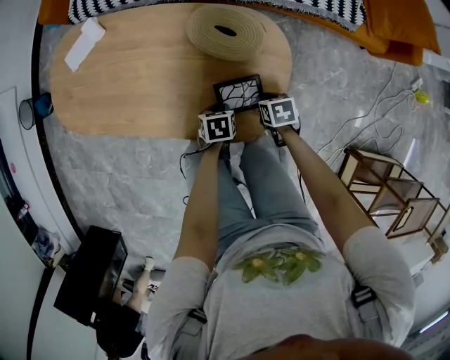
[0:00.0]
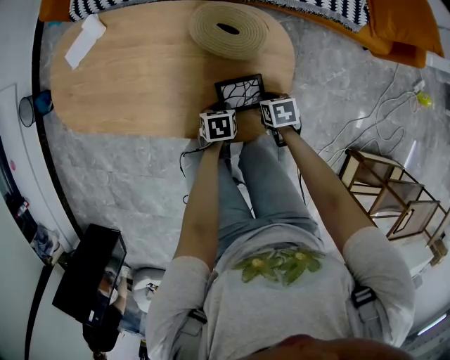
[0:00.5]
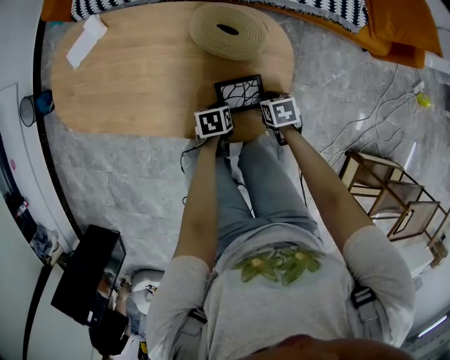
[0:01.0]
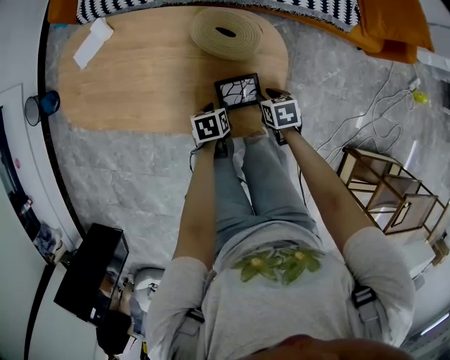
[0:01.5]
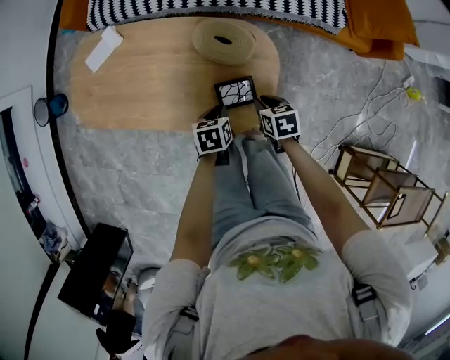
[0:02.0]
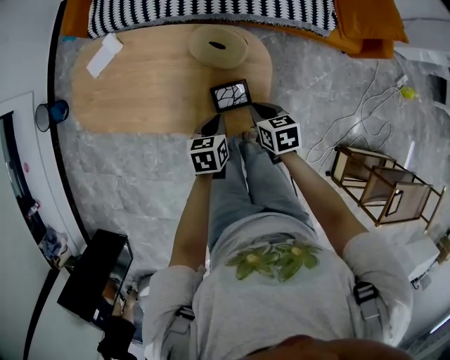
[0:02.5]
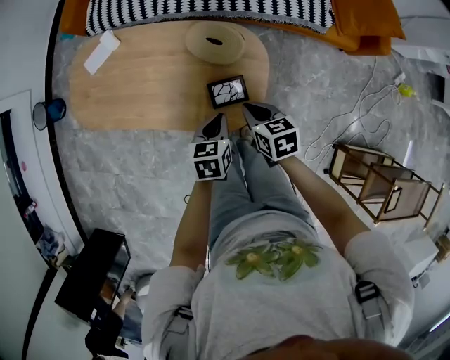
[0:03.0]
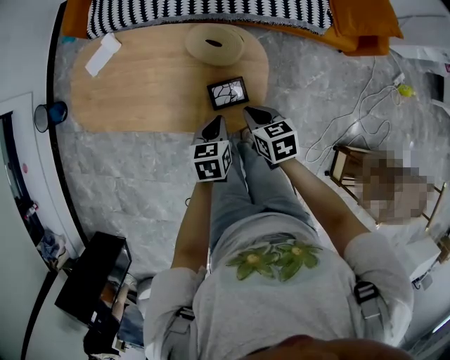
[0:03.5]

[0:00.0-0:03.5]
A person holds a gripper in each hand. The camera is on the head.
0:00.0 to 0:02.0: The two grippers go about 15 cm upward.
0:02.0 to 0:03.5: The grippers both shift upward by approximately 10 cm.

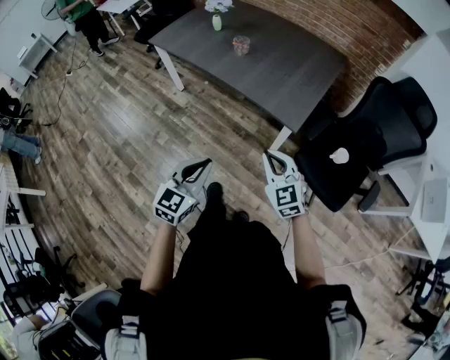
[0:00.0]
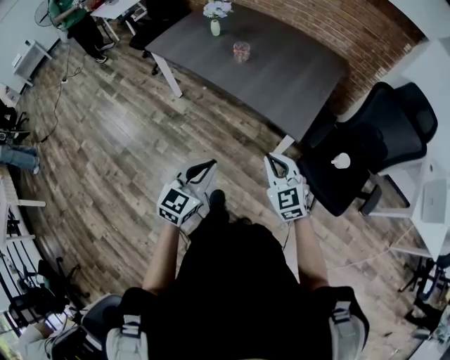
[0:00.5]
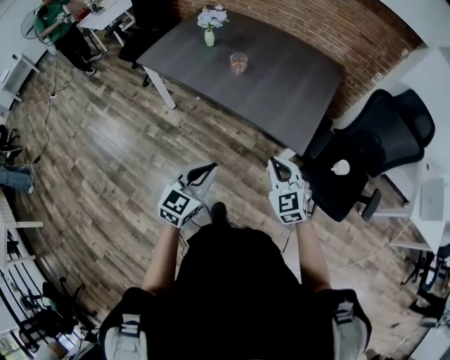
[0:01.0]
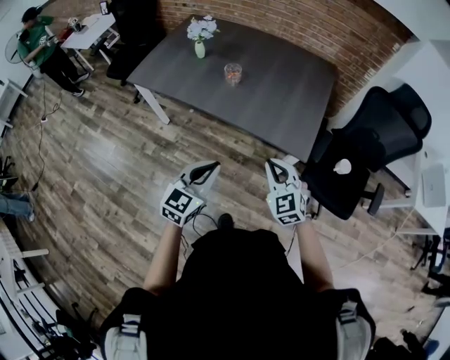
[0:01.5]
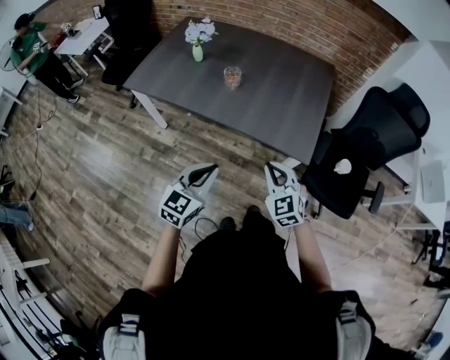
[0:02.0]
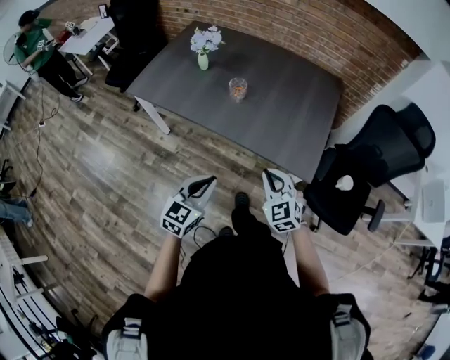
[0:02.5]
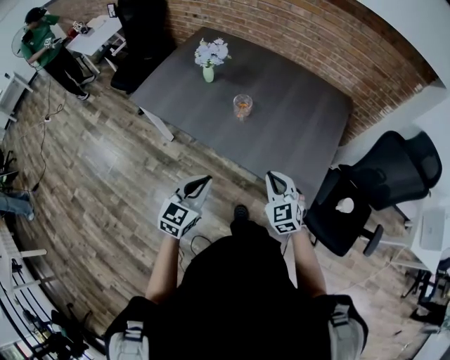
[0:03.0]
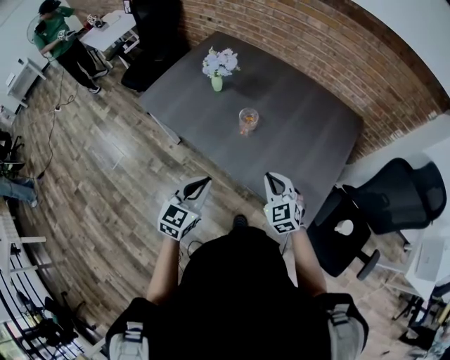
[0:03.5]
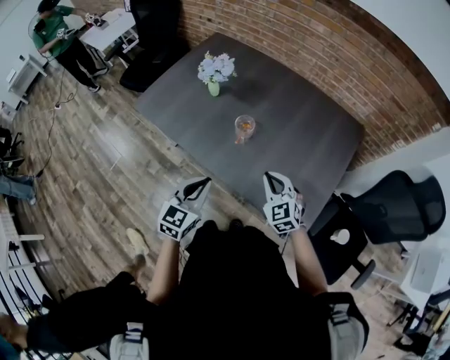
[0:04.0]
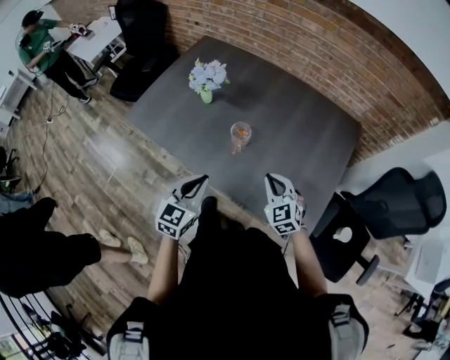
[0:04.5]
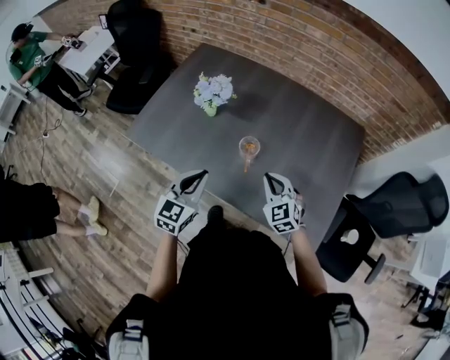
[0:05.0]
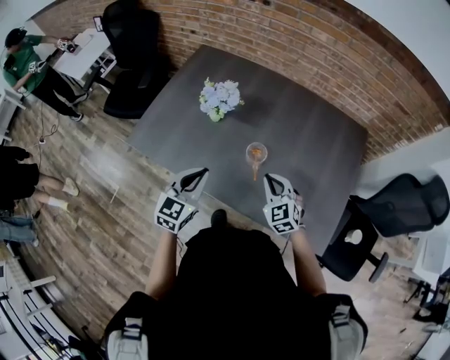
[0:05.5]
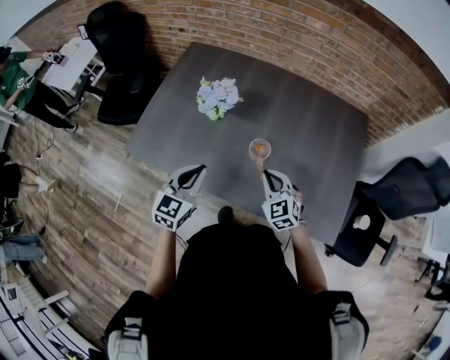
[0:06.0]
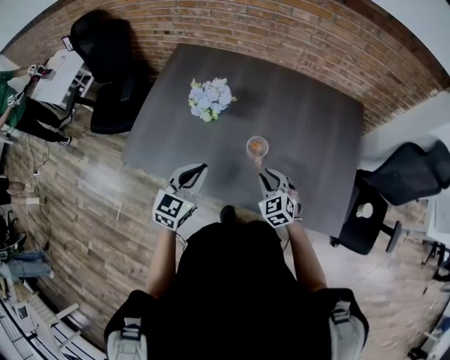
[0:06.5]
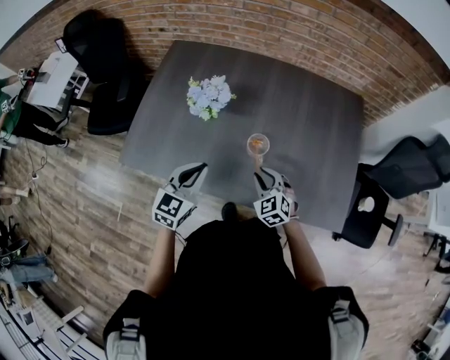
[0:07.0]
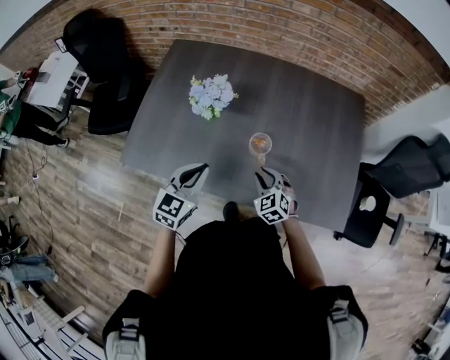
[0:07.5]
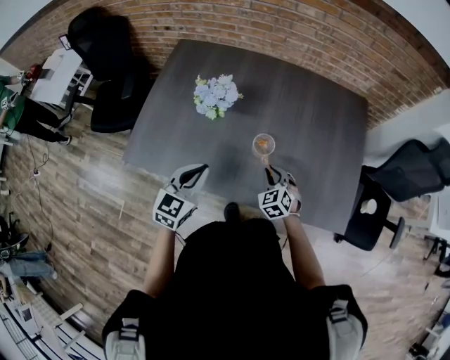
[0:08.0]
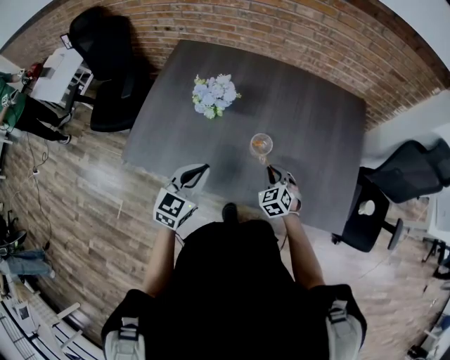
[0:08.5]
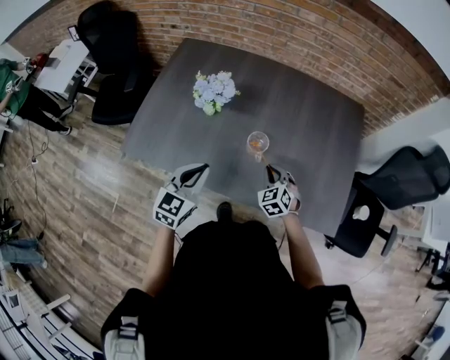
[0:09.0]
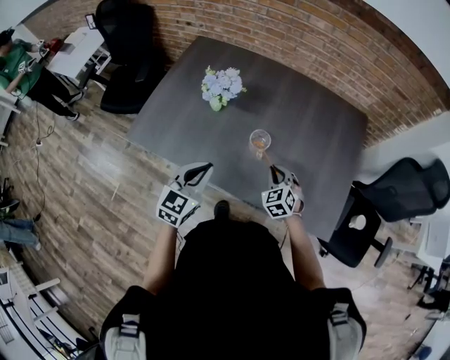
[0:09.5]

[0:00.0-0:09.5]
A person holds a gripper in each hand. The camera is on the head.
0:00.0 to 0:02.0: Both grippers travel together forward and to the left, some 25 cm.
0:02.0 to 0:04.0: The grippers both shift forward by roughly 25 cm.
0:04.0 to 0:05.5: The grippers both shift forward and to the left by some 20 cm.
0:05.5 to 0:07.5: The right gripper moves downward and to the left, about 10 cm, and opens up; the left gripper changes place by about 5 cm.
0:07.5 to 0:09.5: The right gripper goes approximately 5 cm to the right. The left gripper is displaced backward by some 5 cm.

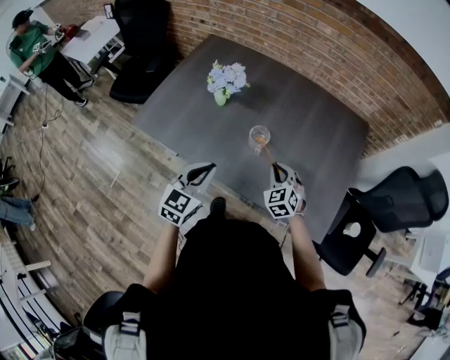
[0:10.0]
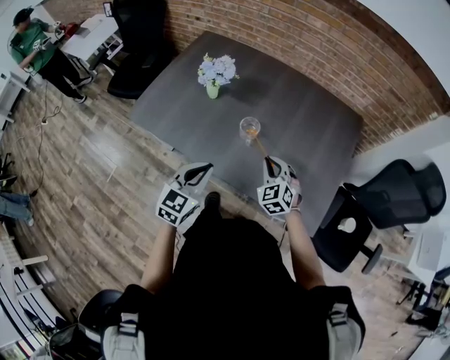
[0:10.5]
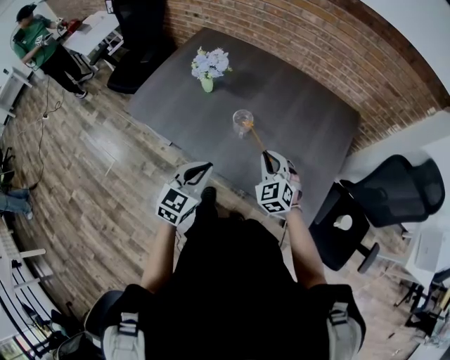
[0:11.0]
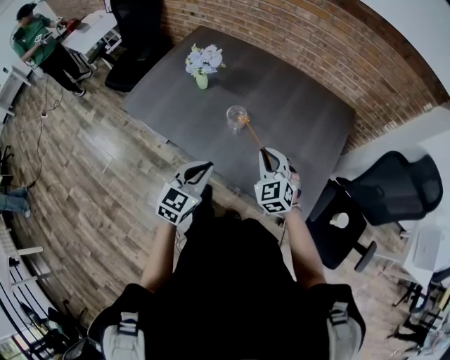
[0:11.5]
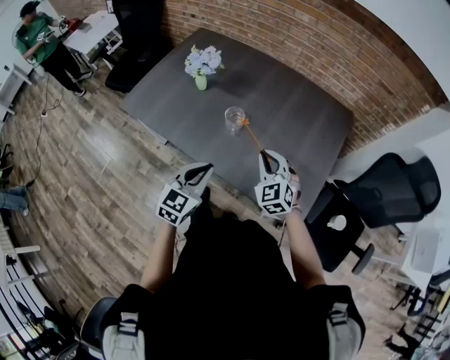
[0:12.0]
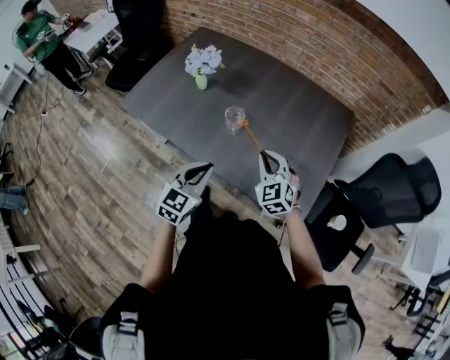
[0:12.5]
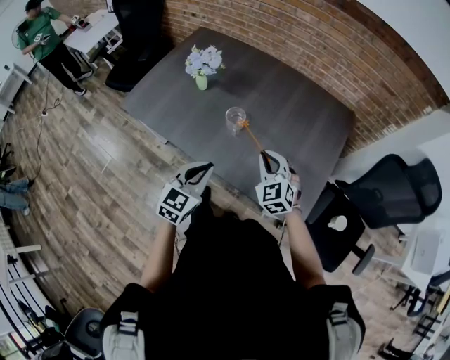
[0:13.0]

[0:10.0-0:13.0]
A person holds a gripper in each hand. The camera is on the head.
0:10.0 to 0:11.5: The left gripper heads to the right and backward, covering roughly 15 cm; the right gripper heads upward, to the right and backward, covering about 10 cm.
0:11.5 to 0:13.0: Both grippers stay about where they are.

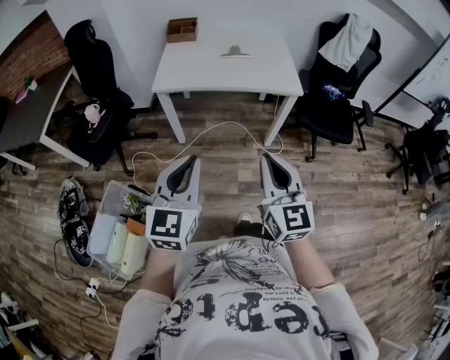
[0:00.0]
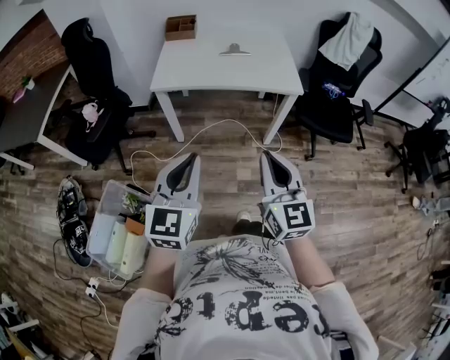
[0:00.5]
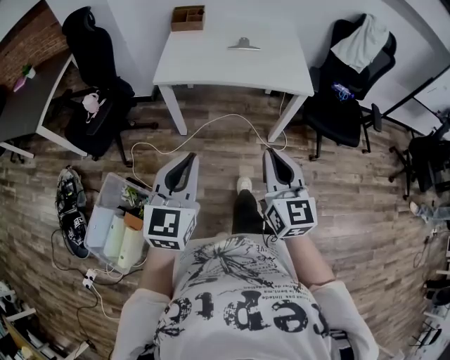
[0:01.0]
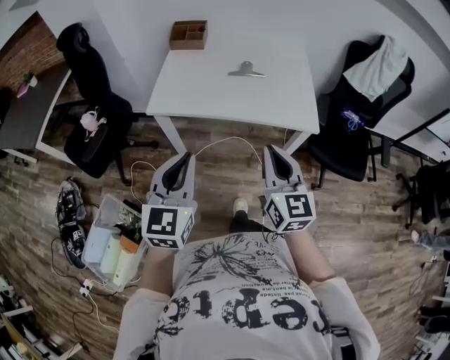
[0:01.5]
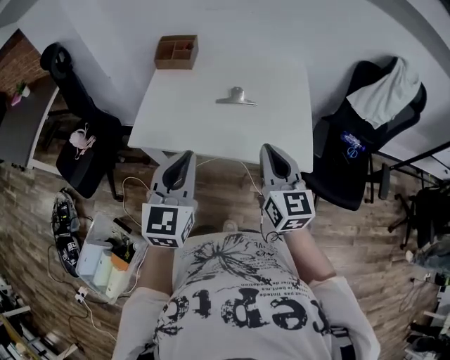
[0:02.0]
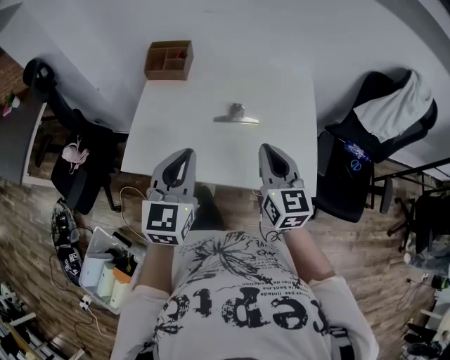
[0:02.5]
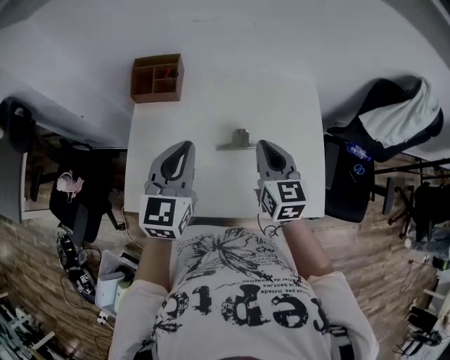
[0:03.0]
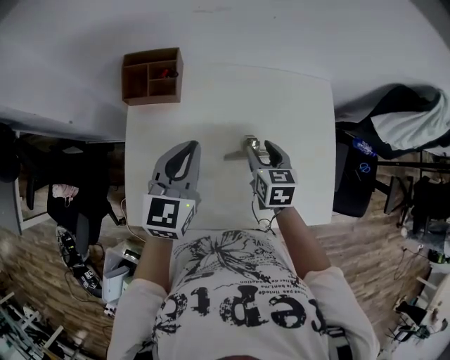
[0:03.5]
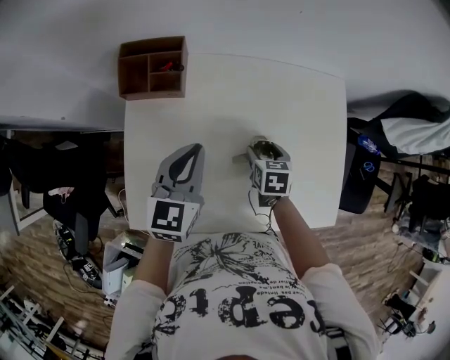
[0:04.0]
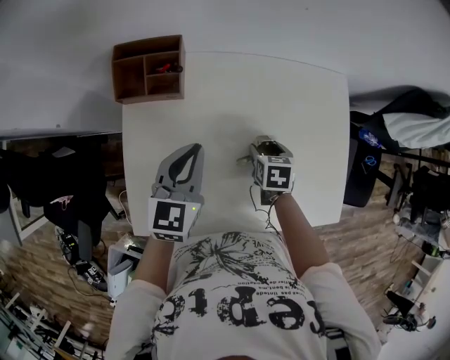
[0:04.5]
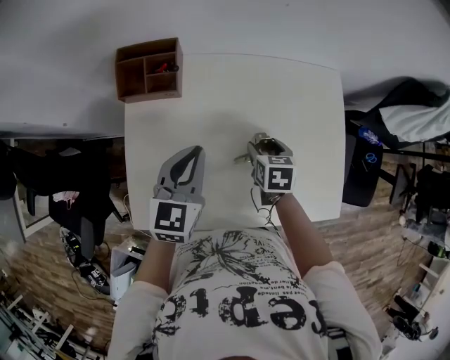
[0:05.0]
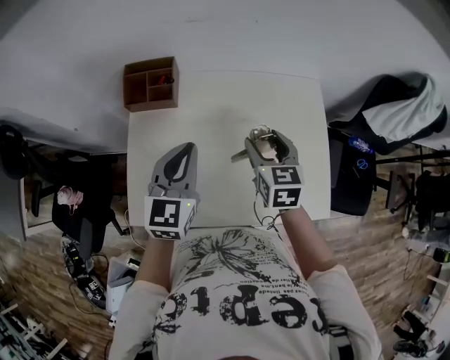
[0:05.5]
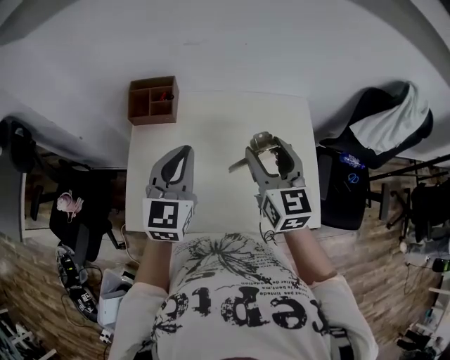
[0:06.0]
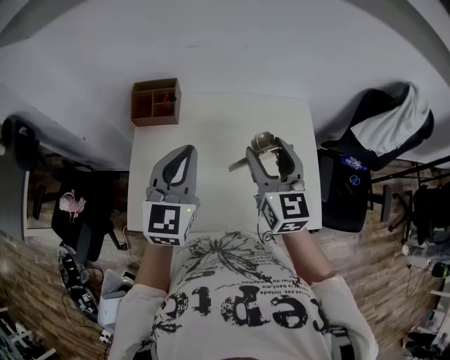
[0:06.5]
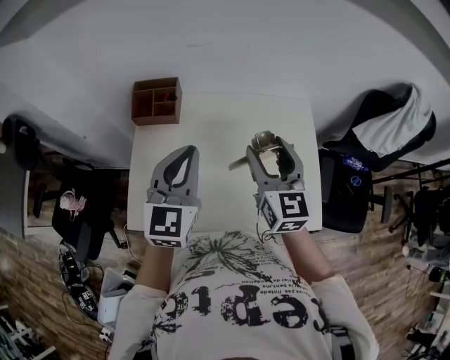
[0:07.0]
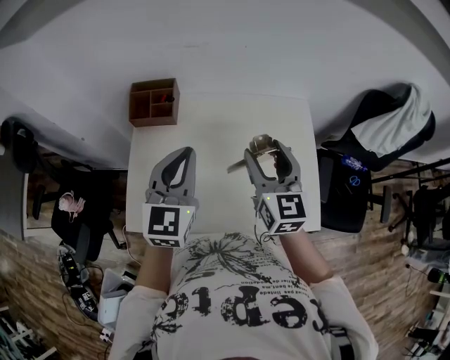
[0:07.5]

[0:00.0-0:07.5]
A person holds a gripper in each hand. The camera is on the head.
0:00.0 to 0:02.0: The pair of grippers is taken forward, about 40 cm.
0:02.0 to 0:04.0: The left gripper is displaced forward by approximately 40 cm, and rotates about 20 degrees; the right gripper goes approximately 50 cm forward and downward, tips its fingers downward by some 50 degrees, and opens up.
0:04.0 to 0:05.5: The right gripper goes roughly 20 cm upward, and changes its angle by approximately 30 degrees; the left gripper heads upward and backward, covering roughly 10 cm.
0:05.5 to 0:07.5: The left gripper is displaced upward by some 5 cm, while the right gripper shifts some 10 cm upward, and rotates about 20 degrees.

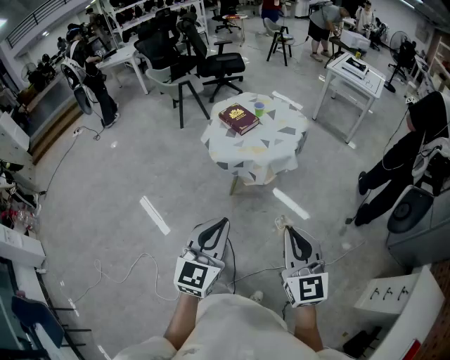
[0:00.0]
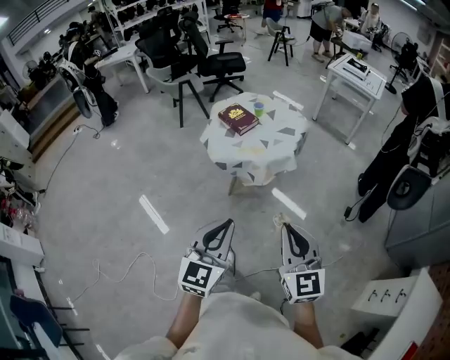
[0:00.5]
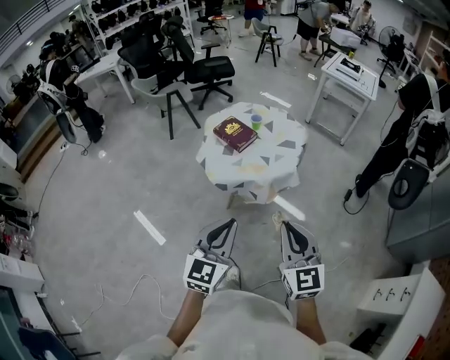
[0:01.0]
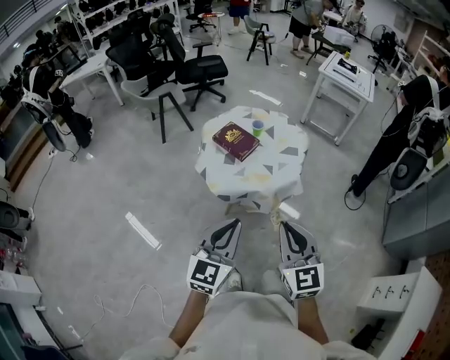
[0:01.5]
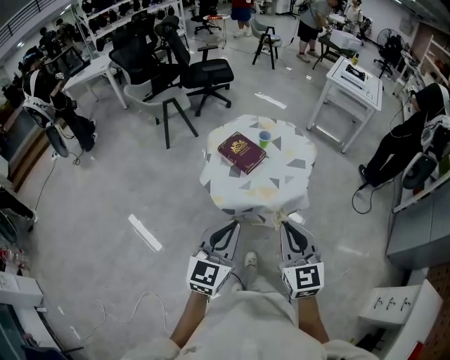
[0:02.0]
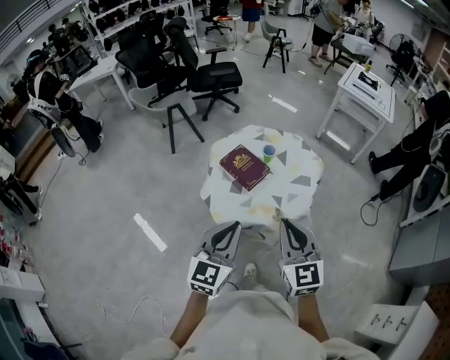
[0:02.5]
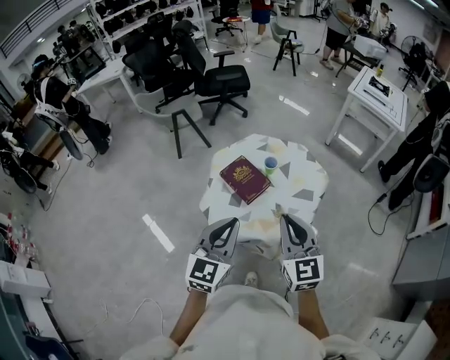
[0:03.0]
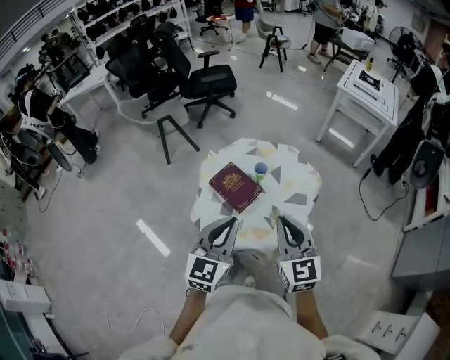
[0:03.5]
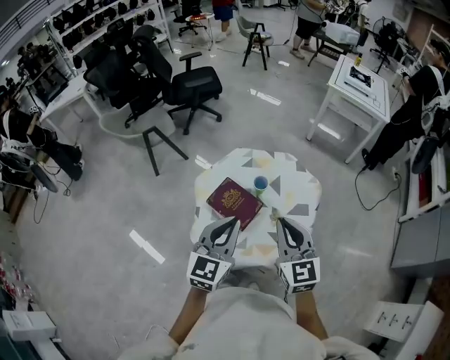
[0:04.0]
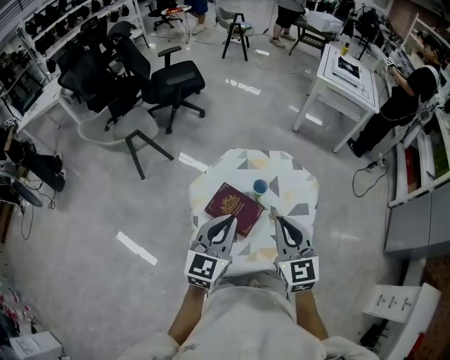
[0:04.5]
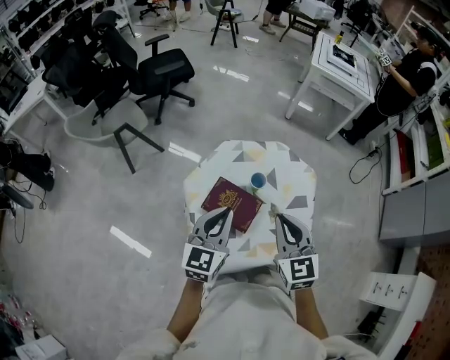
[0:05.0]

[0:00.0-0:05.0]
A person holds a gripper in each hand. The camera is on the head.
0:00.0 to 0:02.5: Both grippers move forward, some 35 cm.
0:02.5 to 0:05.0: The two grippers go about 30 cm forward.
